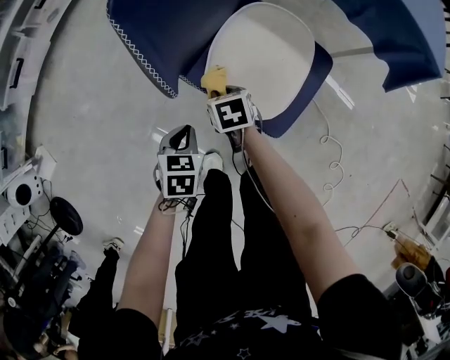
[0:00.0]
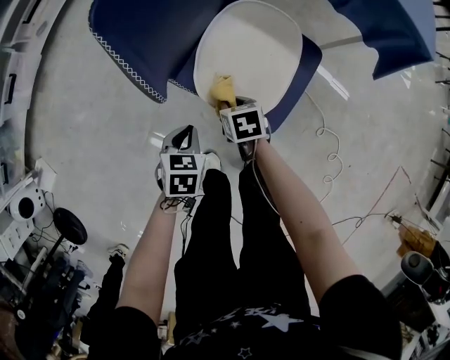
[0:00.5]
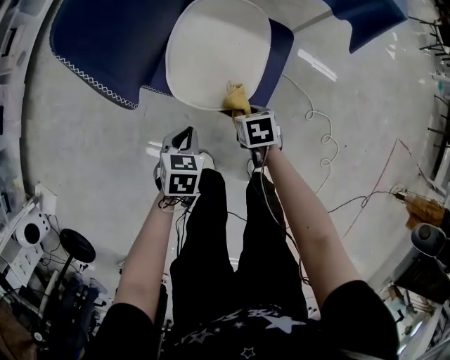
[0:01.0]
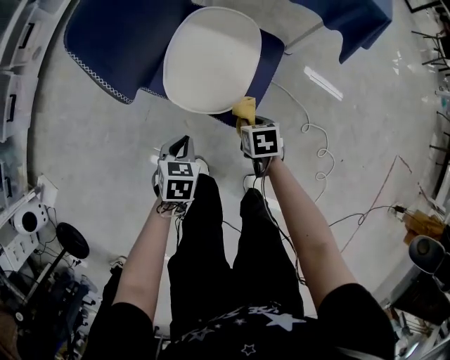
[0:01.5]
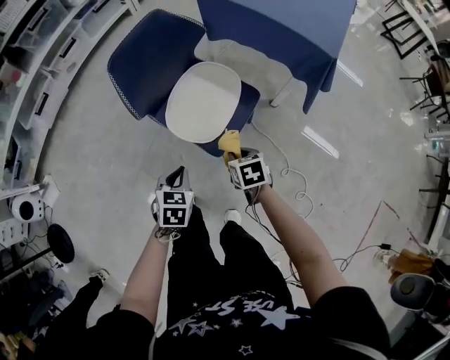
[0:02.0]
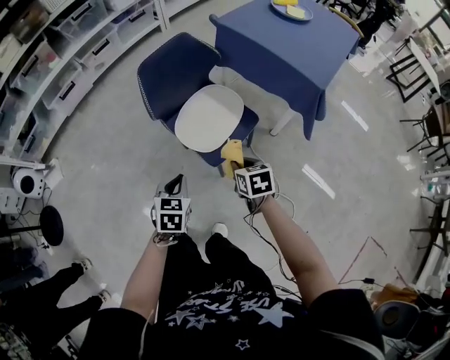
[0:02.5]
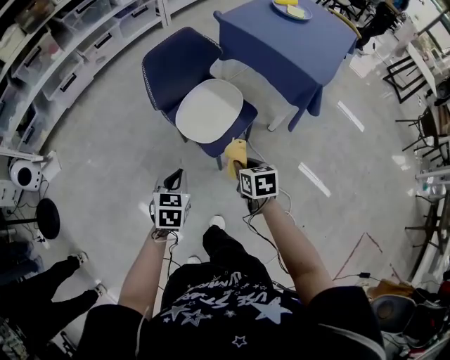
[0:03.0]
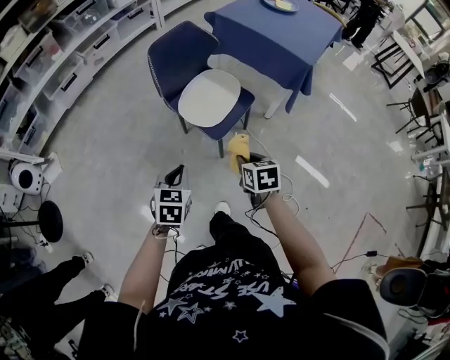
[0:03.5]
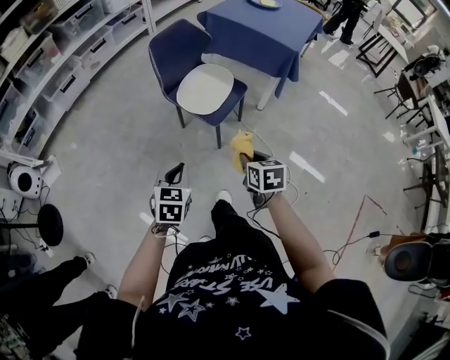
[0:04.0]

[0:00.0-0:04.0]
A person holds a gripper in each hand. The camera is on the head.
0:00.0 to 0:02.0: The left gripper travels upward, to the right and backward by some 25 cm. The right gripper moves to the right, upward and backward, approximately 35 cm.
0:02.0 to 0:04.0: The grippers both shift backward and upward by about 35 cm.

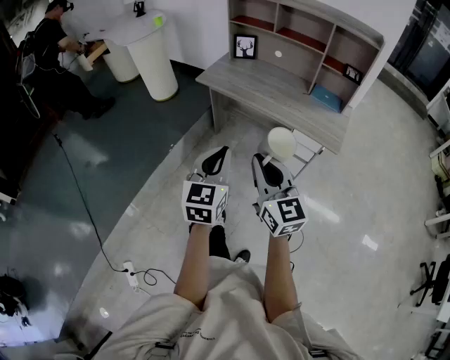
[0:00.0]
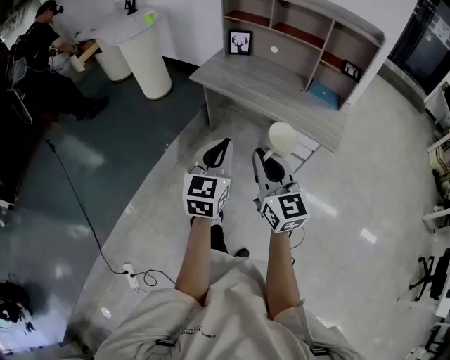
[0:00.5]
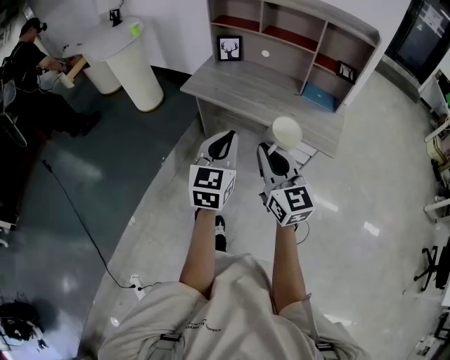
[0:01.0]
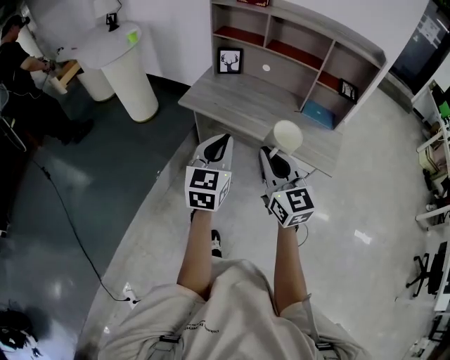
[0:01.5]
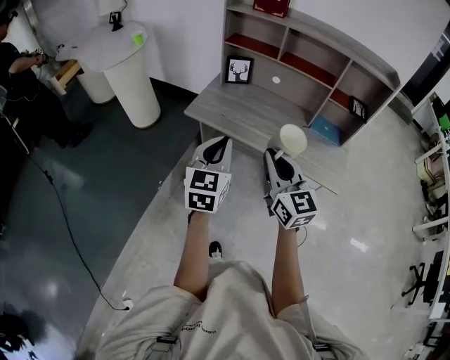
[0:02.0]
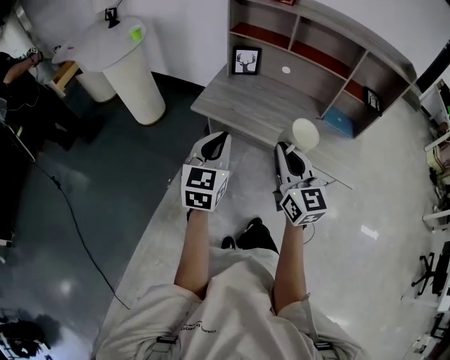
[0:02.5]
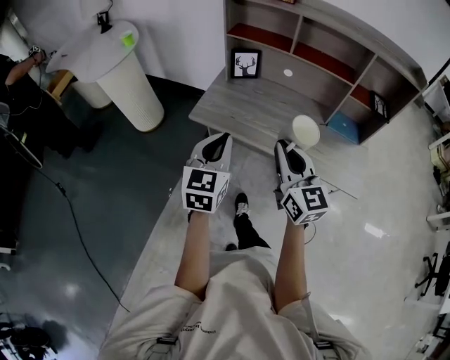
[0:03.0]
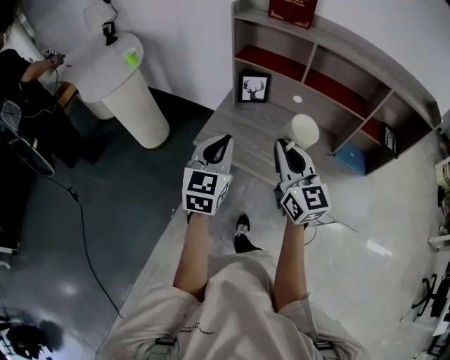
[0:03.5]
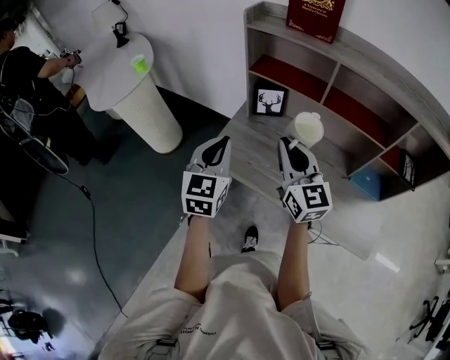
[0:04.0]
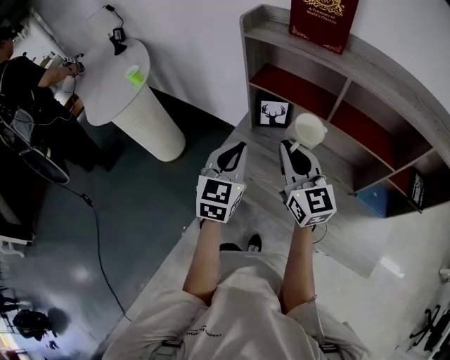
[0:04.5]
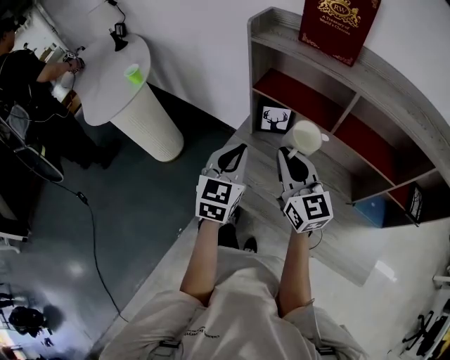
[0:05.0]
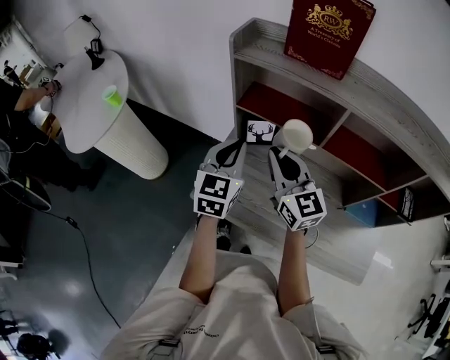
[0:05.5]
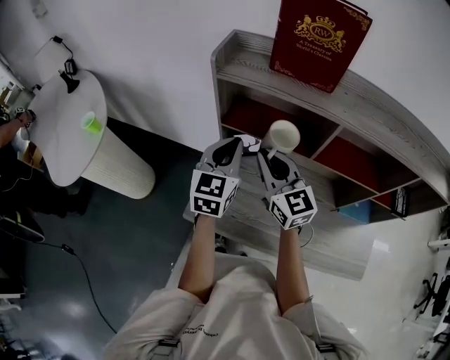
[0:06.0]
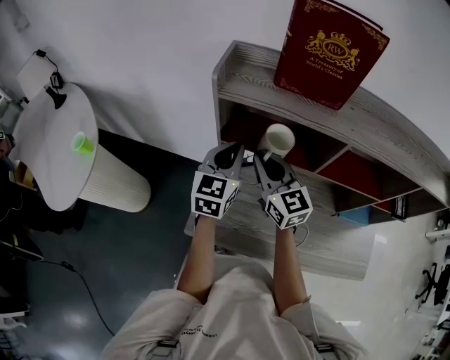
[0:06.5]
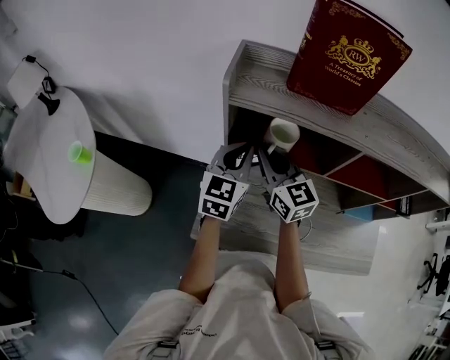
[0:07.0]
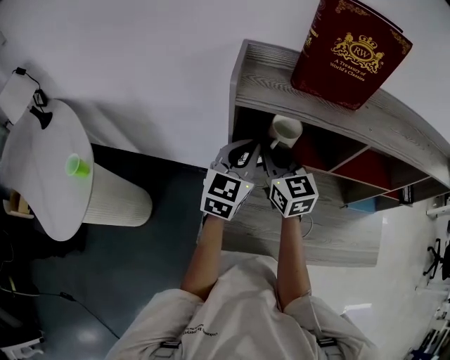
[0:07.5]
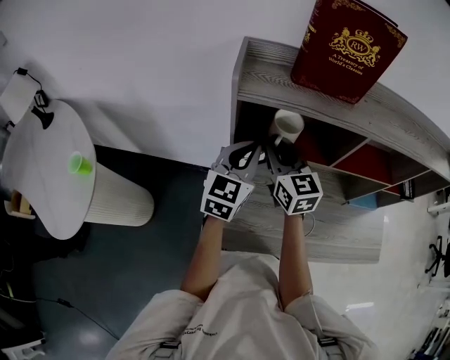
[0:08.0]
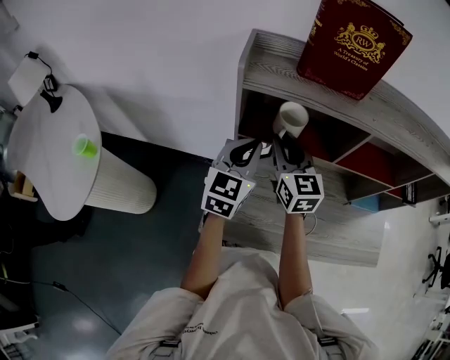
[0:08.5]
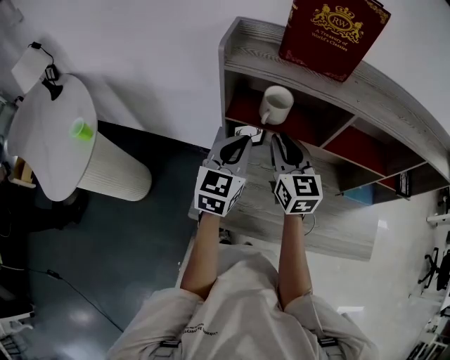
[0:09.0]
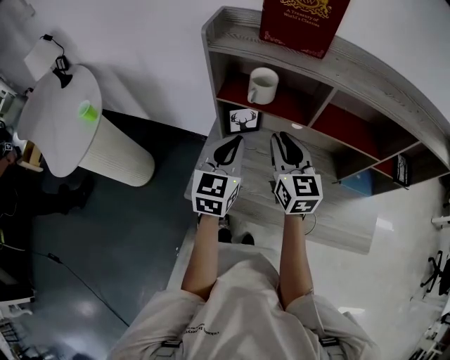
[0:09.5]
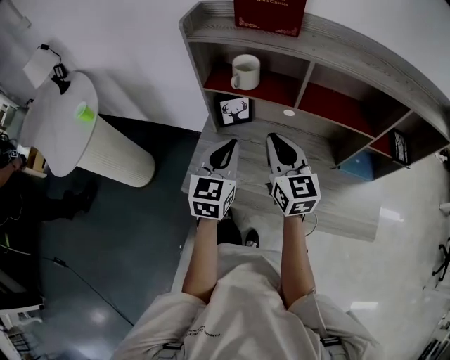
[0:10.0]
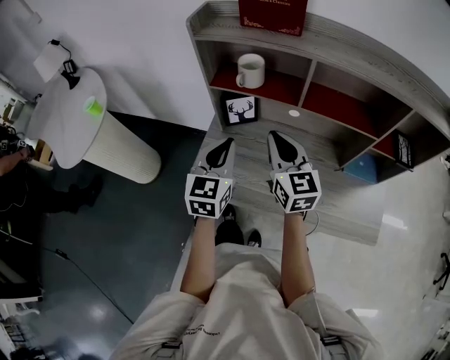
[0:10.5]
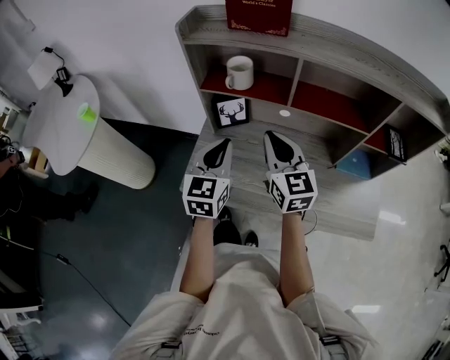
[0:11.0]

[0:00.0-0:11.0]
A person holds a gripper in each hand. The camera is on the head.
0:00.0 to 0:02.0: Both grippers move forward, roughly 30 cm.
0:02.0 to 0:03.5: Both grippers move forward, approximately 25 cm.
0:03.5 to 0:05.5: The grippers both shift forward by about 30 cm.
0:05.5 to 0:07.5: The grippers both shift forward by roughly 15 cm. The right gripper turns by about 20 degrees, while the left gripper changes its angle by roughly 20 degrees.
0:07.5 to 0:09.0: The right gripper goes roughly 10 cm to the right and backward. The left gripper travels backward by about 5 cm.
0:09.0 to 0:11.0: Both grippers move backward and to the right, some 15 cm.

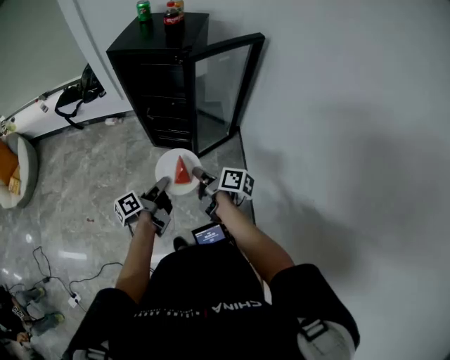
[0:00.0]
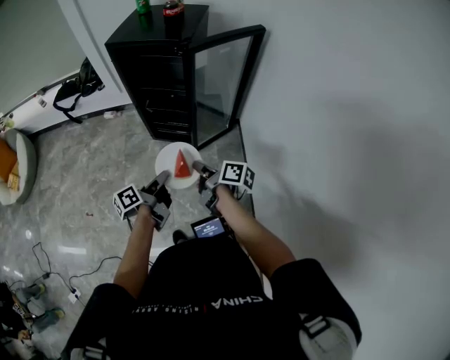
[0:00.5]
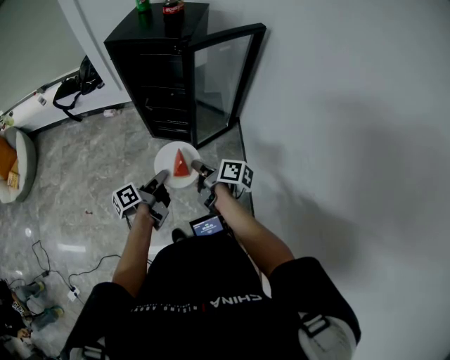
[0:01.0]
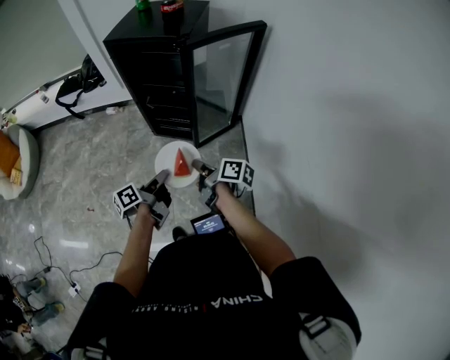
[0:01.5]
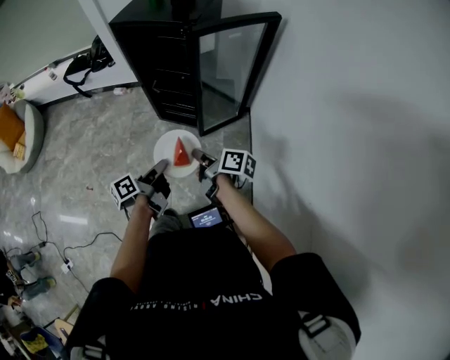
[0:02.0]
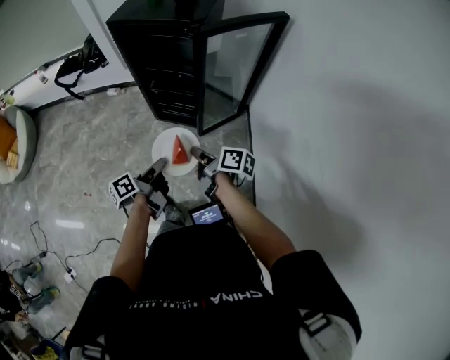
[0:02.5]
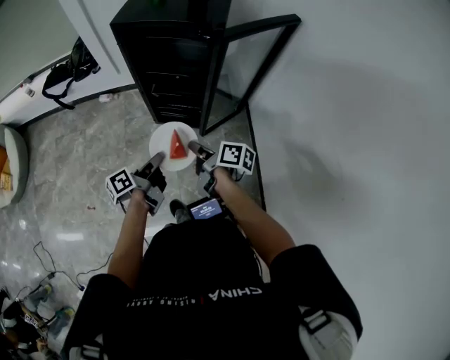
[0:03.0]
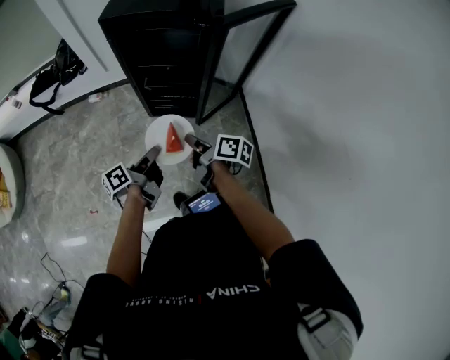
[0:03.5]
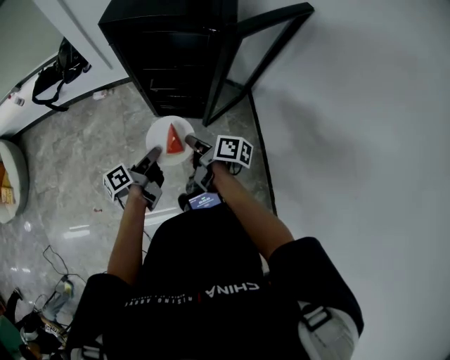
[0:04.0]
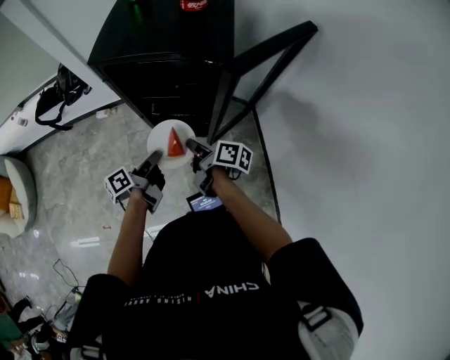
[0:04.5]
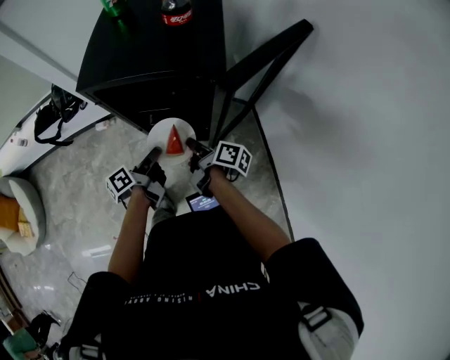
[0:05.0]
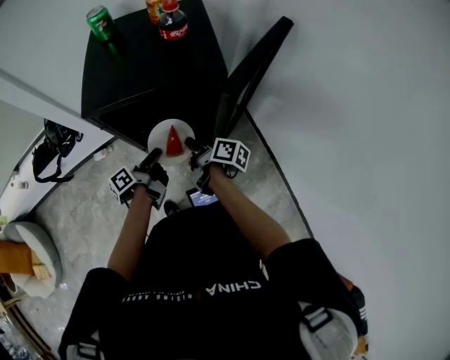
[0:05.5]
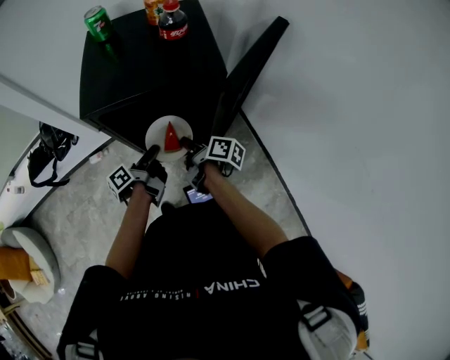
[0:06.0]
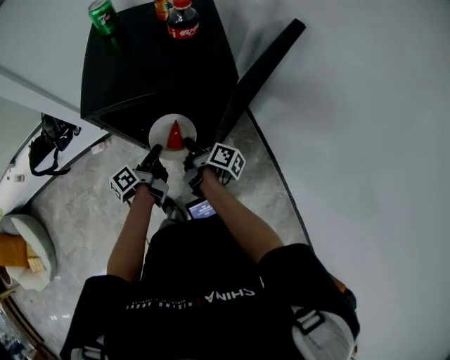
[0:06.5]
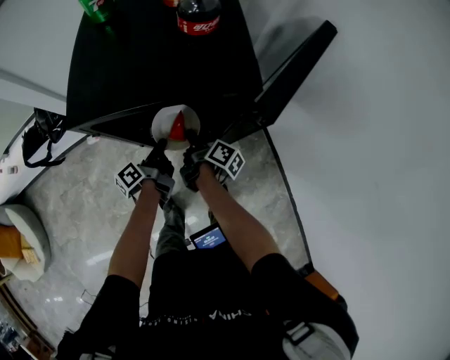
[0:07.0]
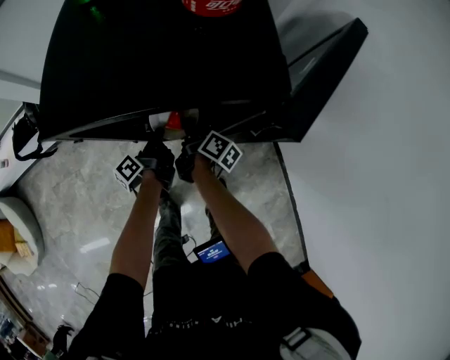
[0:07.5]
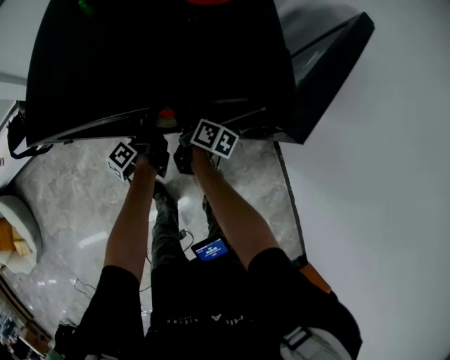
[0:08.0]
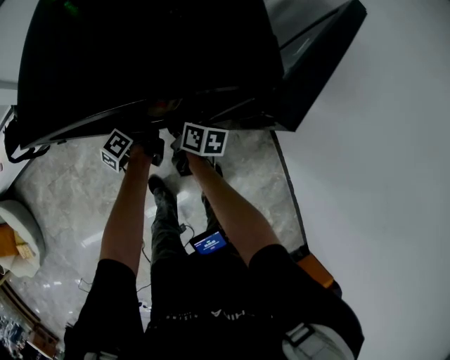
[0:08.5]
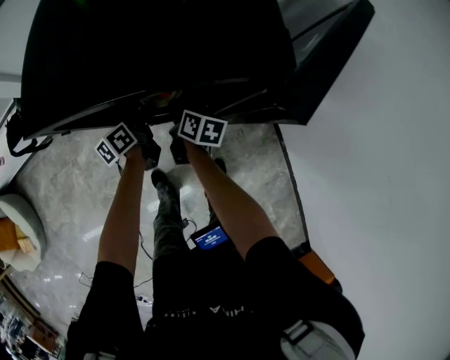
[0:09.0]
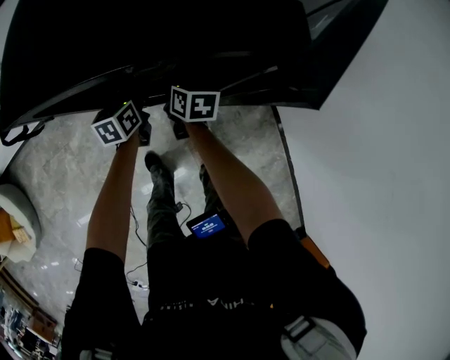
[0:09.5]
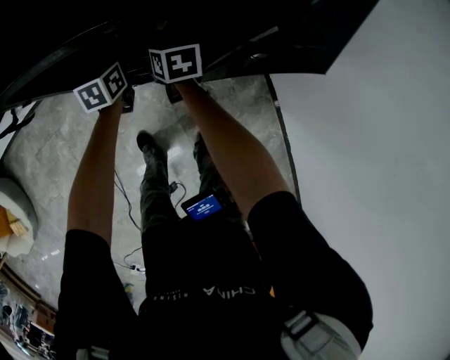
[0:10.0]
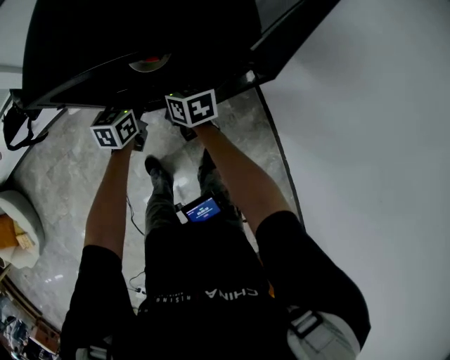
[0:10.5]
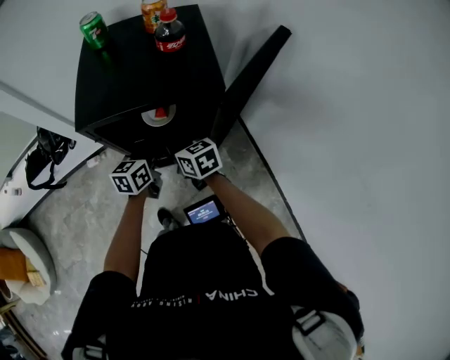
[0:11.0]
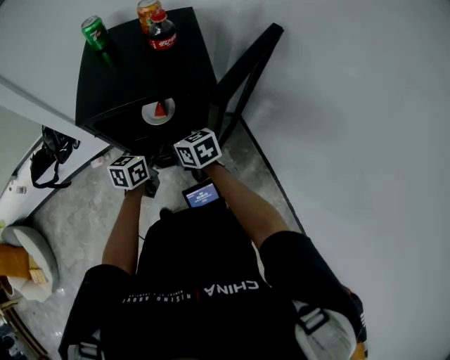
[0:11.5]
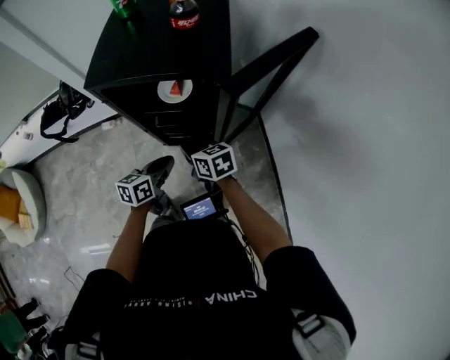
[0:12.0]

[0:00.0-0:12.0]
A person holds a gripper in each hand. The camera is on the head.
0:00.0 to 0:02.0: The left gripper changes place by approximately 5 cm. Meanwhile the right gripper ends up about 5 cm from where it was.
0:02.0 to 0:04.0: The right gripper goes some 25 cm to the left and forward; the left gripper moves forward and to the left, about 25 cm.
0:04.0 to 0:06.0: The two grippers go approximately 25 cm forward. The right gripper turns by about 20 degrees.
0:06.0 to 0:08.0: Both grippers travel together downward and forward, some 25 cm.
0:08.0 to 0:10.0: The right gripper rotates around the line of its fingers by about 40 degrees, counterclockwise from behind, while the left gripper rolls clockwise, seen from behind, by some 70 degrees.
0:10.0 to 0:12.0: The two grippers go approximately 30 cm backward and upward. The left gripper swivels about 20 degrees. Meanwhile the right gripper rotates some 20 degrees.
